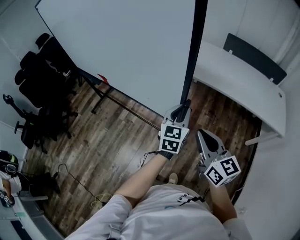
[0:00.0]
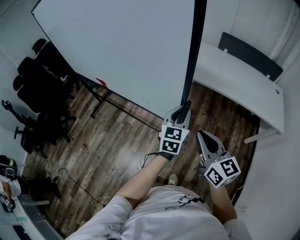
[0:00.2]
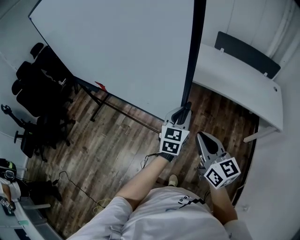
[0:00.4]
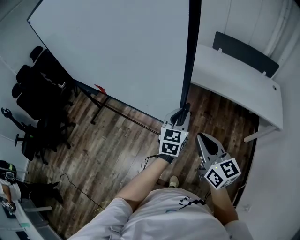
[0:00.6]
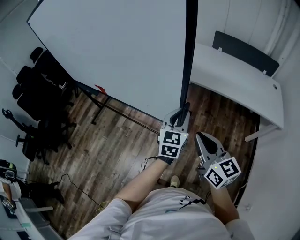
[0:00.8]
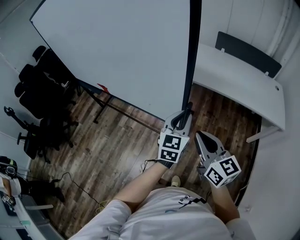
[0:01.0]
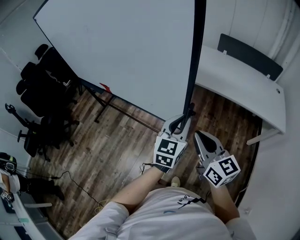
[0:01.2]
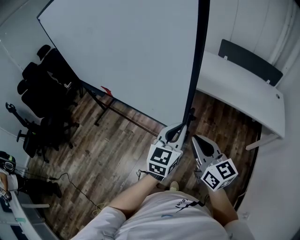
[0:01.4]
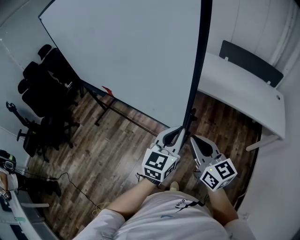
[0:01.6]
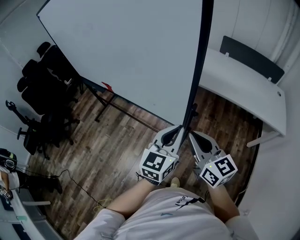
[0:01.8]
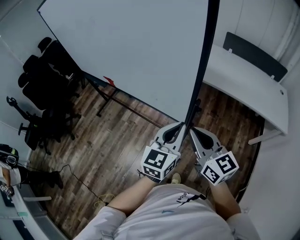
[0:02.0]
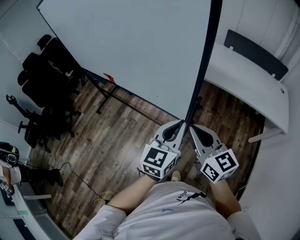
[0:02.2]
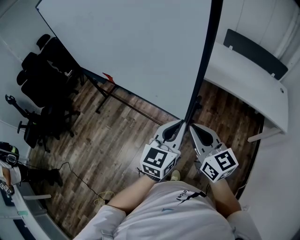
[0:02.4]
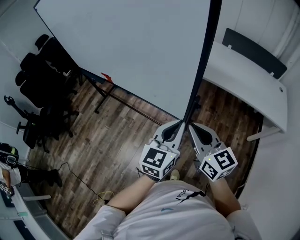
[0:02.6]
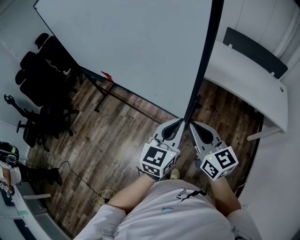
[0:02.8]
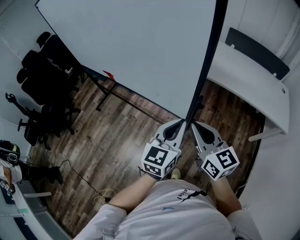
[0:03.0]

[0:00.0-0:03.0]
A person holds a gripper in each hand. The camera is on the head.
0:00.0 to 0:01.6: The left gripper is displaced backward and upward by some 10 cm.
0:01.6 to 0:03.0: The grippers move only a little.

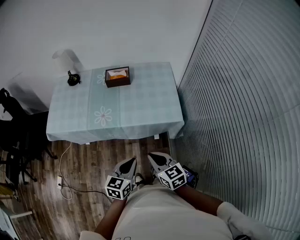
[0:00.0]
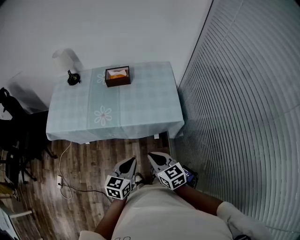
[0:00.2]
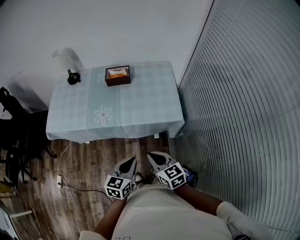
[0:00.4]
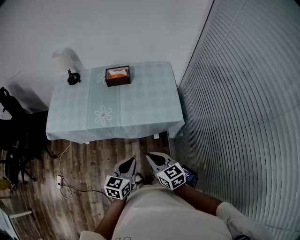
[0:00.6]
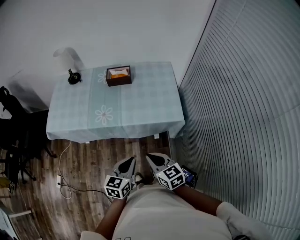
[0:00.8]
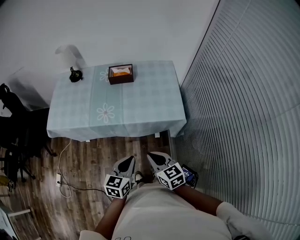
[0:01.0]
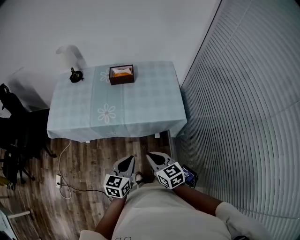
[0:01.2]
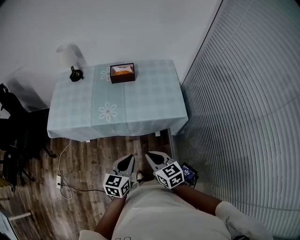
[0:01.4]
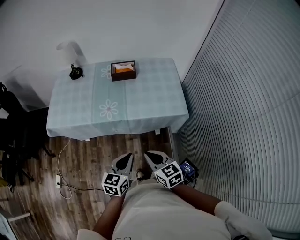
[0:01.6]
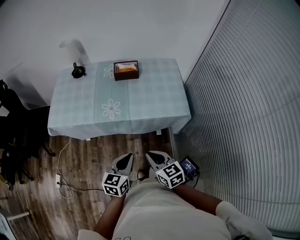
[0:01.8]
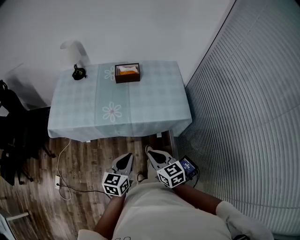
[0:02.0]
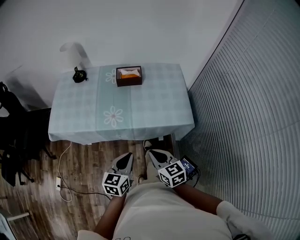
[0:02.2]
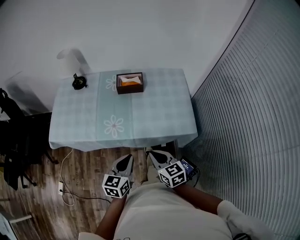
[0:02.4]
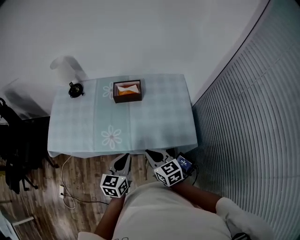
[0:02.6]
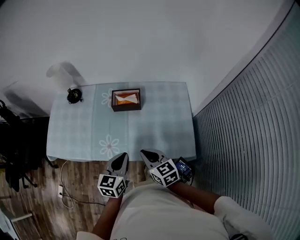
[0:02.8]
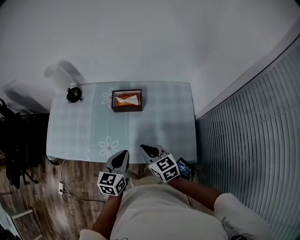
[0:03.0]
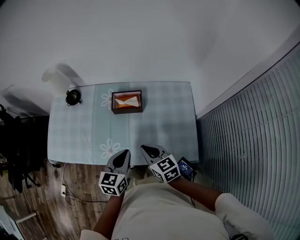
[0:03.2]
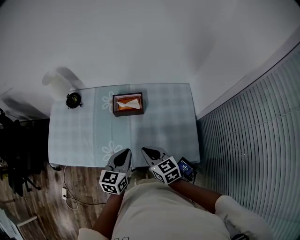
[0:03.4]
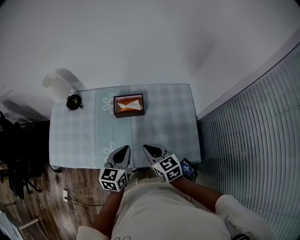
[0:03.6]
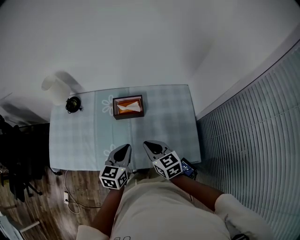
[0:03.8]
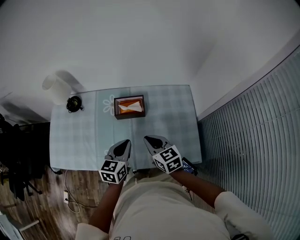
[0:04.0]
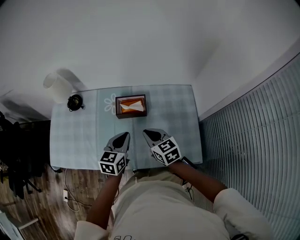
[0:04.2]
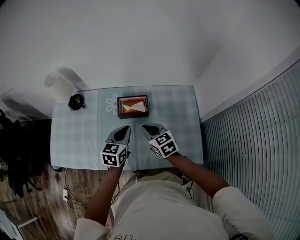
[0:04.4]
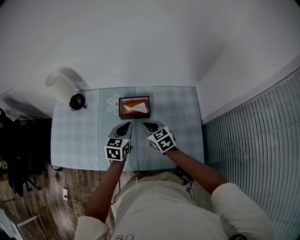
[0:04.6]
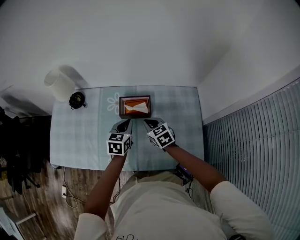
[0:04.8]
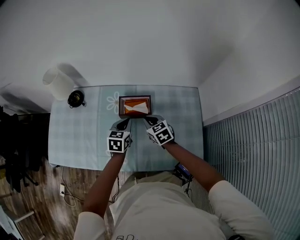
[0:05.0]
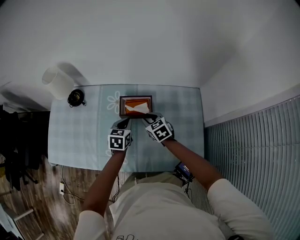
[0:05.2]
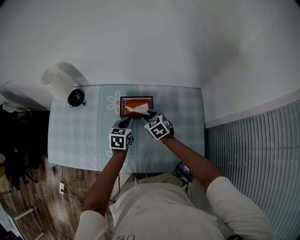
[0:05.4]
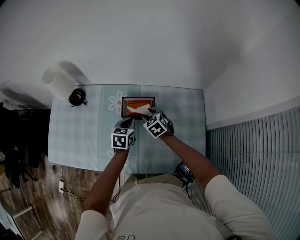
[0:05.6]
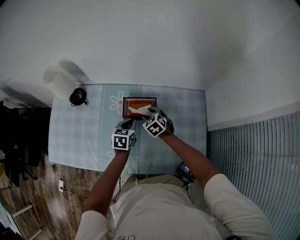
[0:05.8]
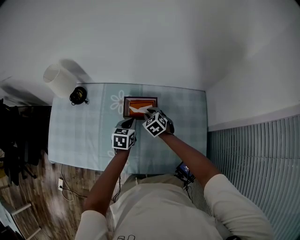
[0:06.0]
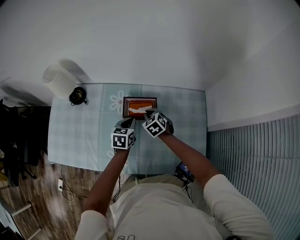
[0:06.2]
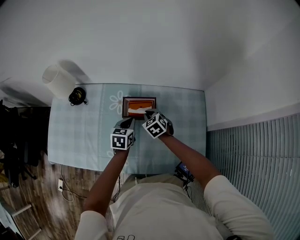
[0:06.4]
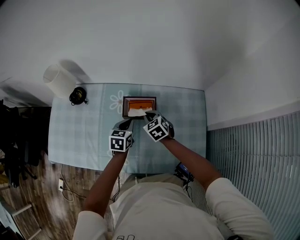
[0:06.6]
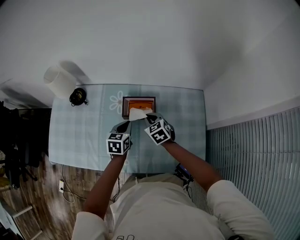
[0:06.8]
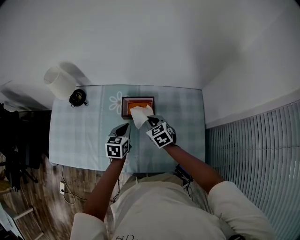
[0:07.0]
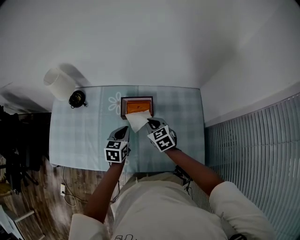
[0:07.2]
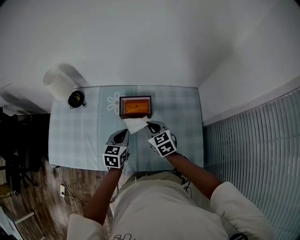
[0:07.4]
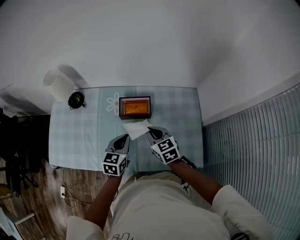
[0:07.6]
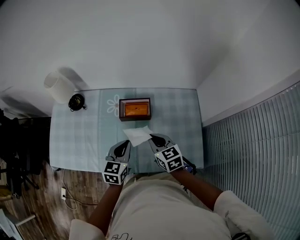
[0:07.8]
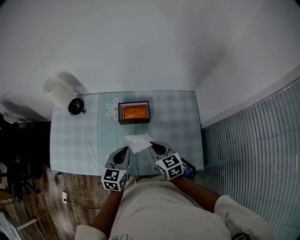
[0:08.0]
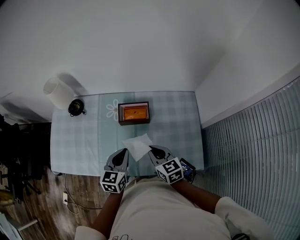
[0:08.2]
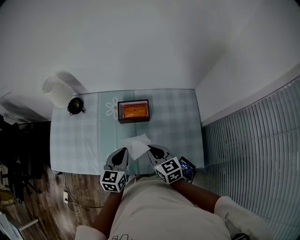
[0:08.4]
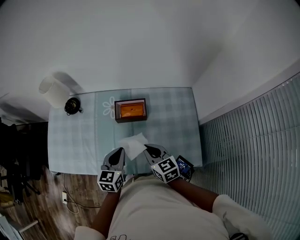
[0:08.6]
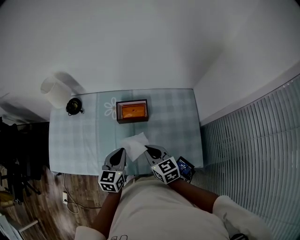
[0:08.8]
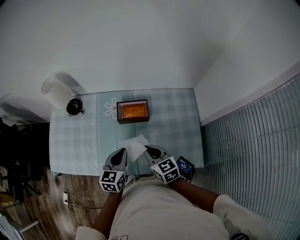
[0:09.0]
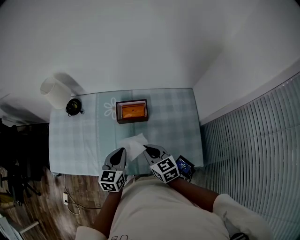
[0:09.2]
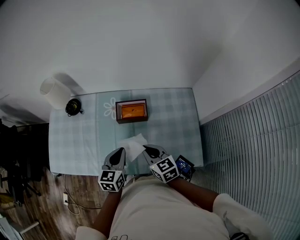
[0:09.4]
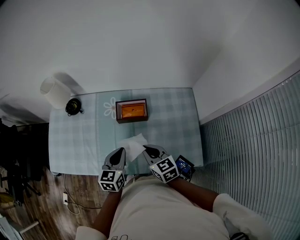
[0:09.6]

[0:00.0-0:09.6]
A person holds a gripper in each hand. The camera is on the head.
0:00.0 to 0:01.6: The two grippers go approximately 10 cm to the left.
0:01.6 to 0:03.2: Both grippers move forward, approximately 35 cm.
0:03.2 to 0:04.8: The right gripper goes some 20 cm forward and downward. Meanwhile the left gripper moves forward, approximately 20 cm.
0:04.8 to 0:06.4: The right gripper goes approximately 10 cm forward and downward, and opens, then closes once more. Meanwhile the left gripper shifts about 5 cm downward.
0:06.4 to 0:08.0: The grippers both shift backward and upward by about 20 cm. The right gripper swivels about 30 degrees.
0:08.0 to 0:09.6: There are only small adjustments of the grippers.

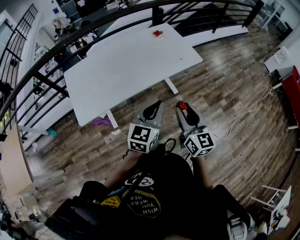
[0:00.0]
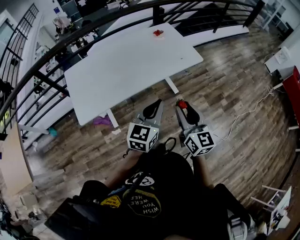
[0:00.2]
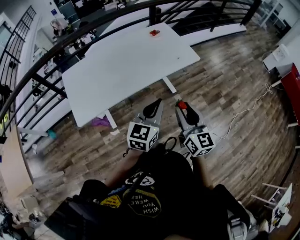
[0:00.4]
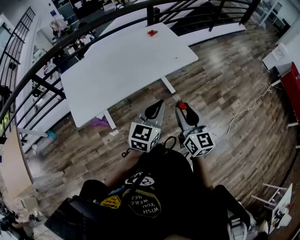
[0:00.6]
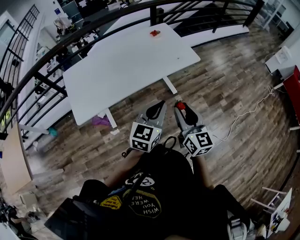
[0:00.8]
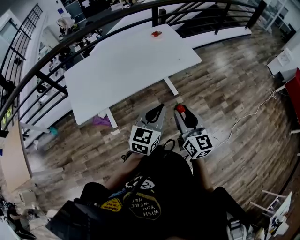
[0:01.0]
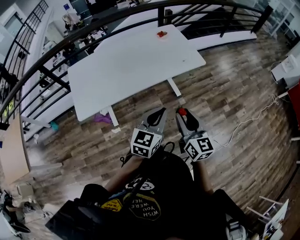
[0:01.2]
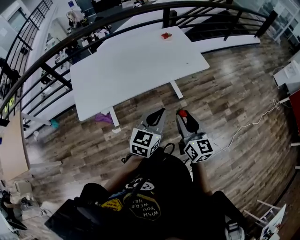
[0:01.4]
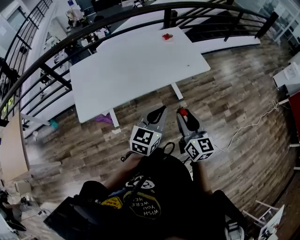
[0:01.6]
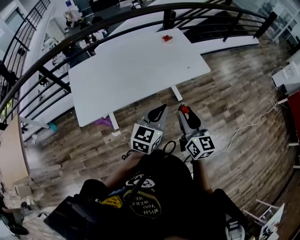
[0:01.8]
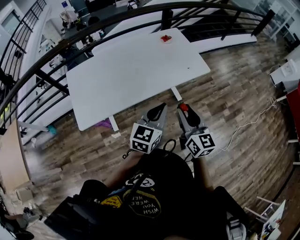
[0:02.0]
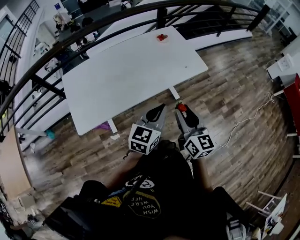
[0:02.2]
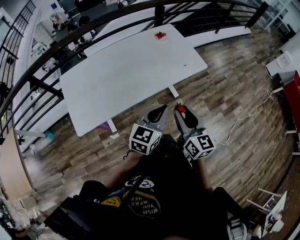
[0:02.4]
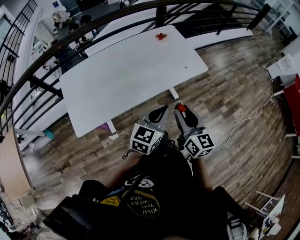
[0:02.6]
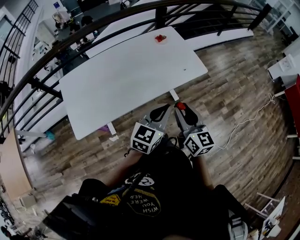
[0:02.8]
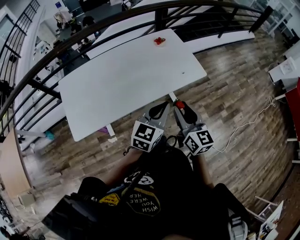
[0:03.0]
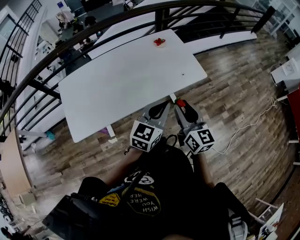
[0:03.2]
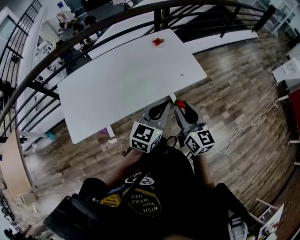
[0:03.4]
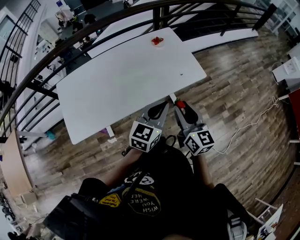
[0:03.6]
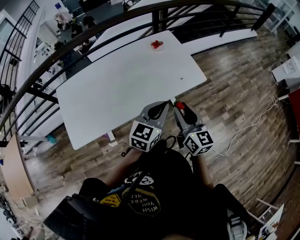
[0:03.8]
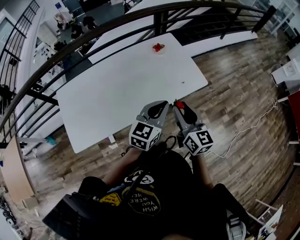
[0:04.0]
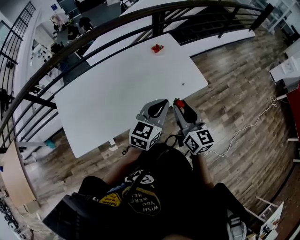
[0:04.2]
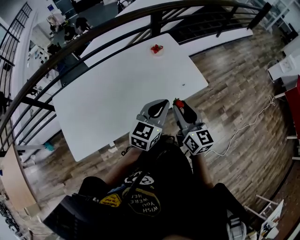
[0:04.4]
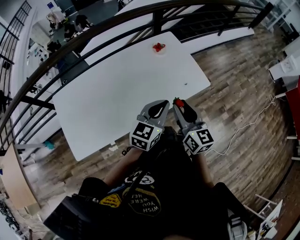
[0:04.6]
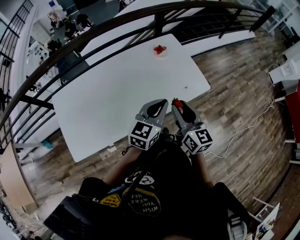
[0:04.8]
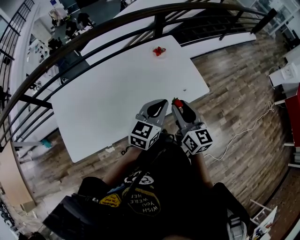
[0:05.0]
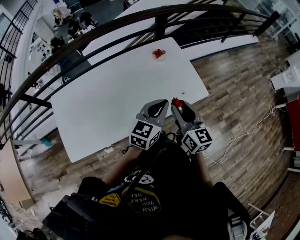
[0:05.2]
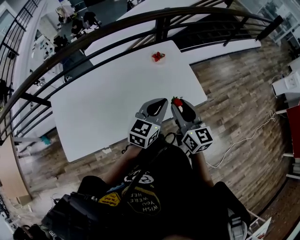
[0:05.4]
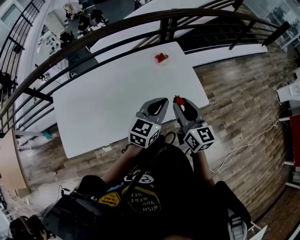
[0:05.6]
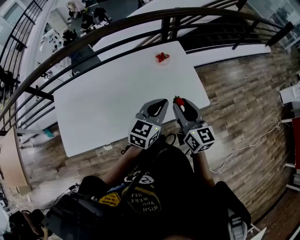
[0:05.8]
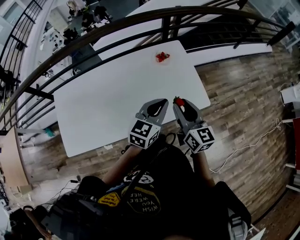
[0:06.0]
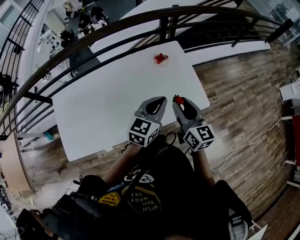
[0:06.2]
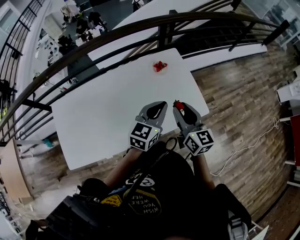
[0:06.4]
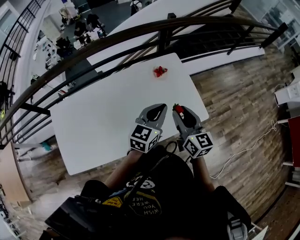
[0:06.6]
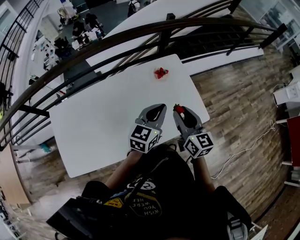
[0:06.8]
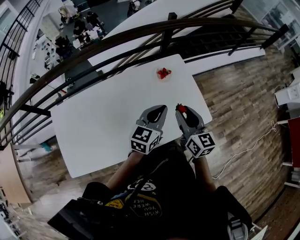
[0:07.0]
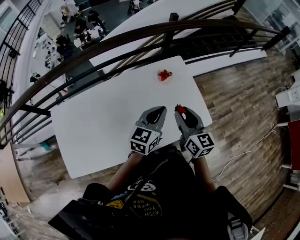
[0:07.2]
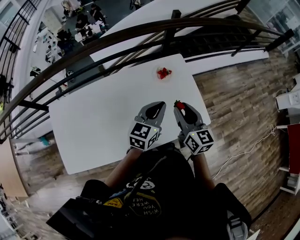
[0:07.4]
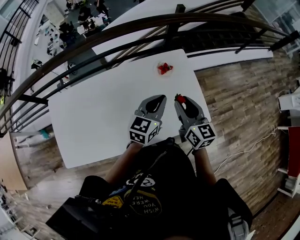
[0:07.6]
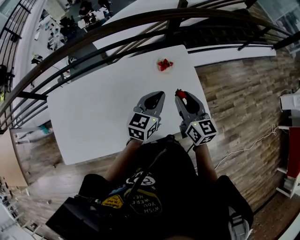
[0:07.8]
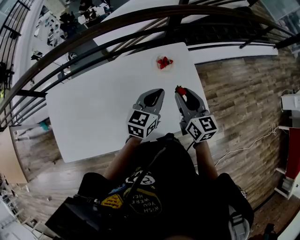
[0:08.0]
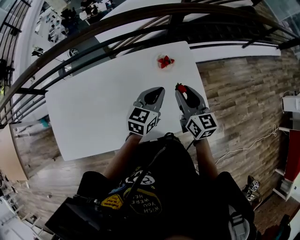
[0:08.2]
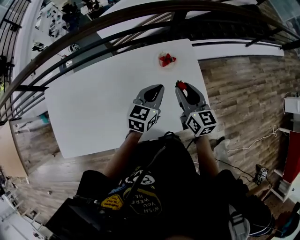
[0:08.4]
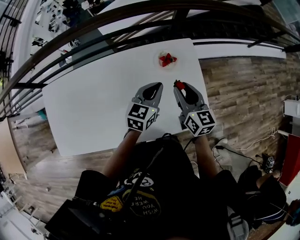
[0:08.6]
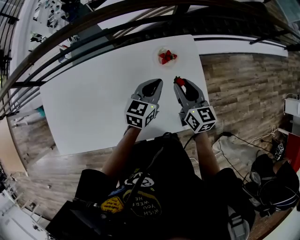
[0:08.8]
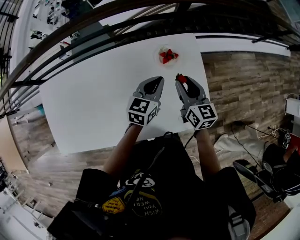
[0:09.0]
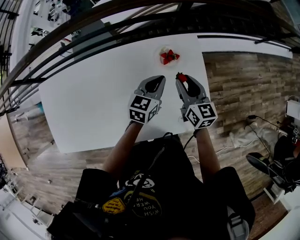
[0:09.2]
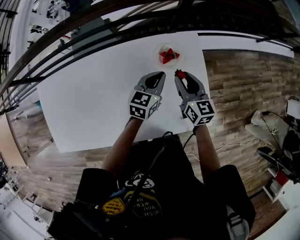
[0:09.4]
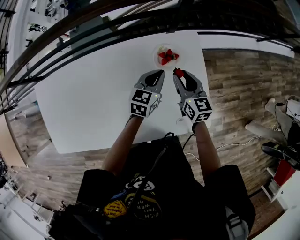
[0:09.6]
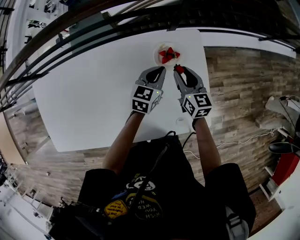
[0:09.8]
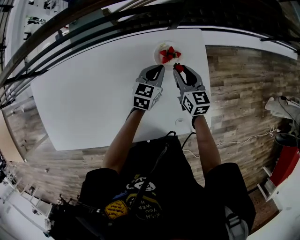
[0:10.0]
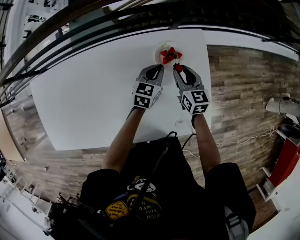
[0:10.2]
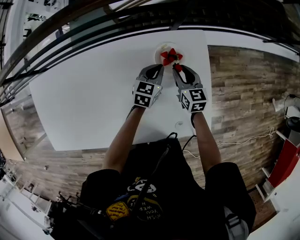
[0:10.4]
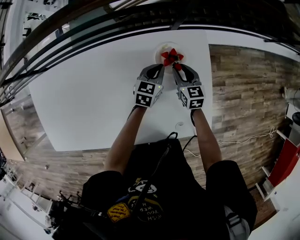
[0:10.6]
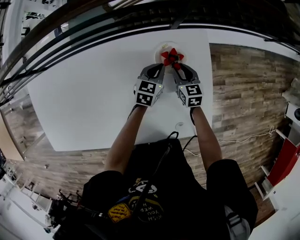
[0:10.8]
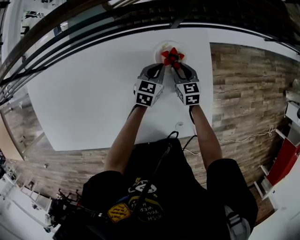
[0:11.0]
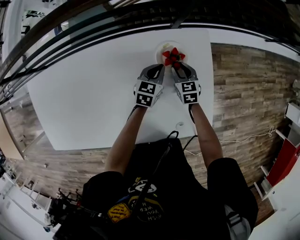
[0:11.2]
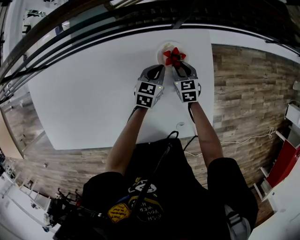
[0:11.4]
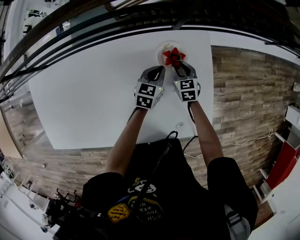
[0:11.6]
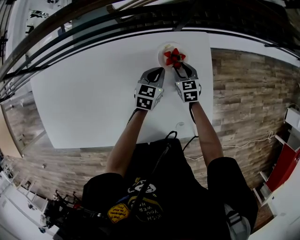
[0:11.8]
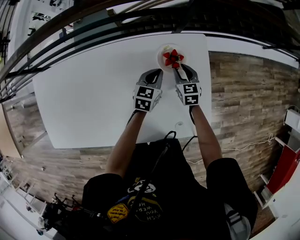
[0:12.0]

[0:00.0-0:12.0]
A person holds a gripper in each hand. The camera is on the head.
0:01.6 to 0:03.0: Both grippers travel together forward, about 15 cm.
0:03.0 to 0:04.4: Both grippers move forward, roughly 15 cm.
0:04.4 to 0:06.0: Both grippers move forward, approximately 15 cm.
0:06.0 to 0:07.6: Both grippers move forward, about 15 cm.
0:07.6 to 0:09.0: The grippers both shift forward and downward by roughly 20 cm.
0:09.0 to 0:10.4: The two grippers go about 20 cm downward and forward.
